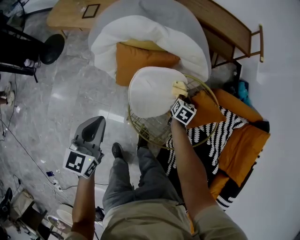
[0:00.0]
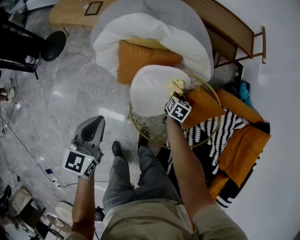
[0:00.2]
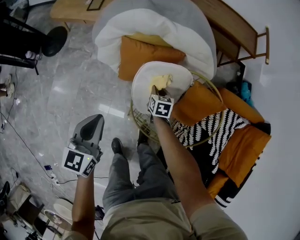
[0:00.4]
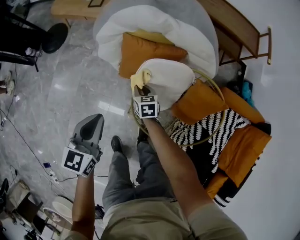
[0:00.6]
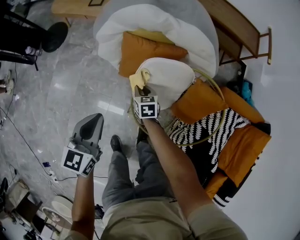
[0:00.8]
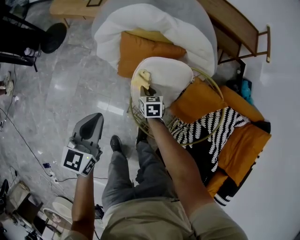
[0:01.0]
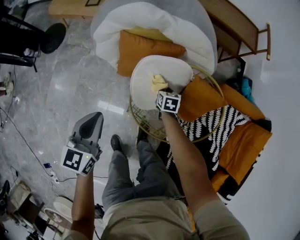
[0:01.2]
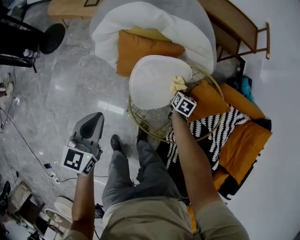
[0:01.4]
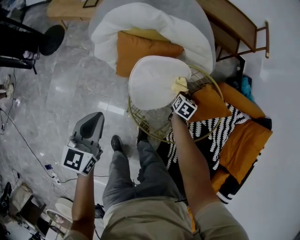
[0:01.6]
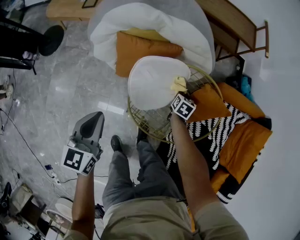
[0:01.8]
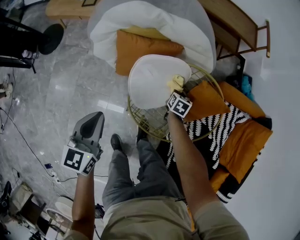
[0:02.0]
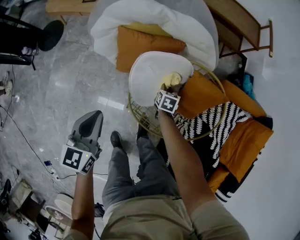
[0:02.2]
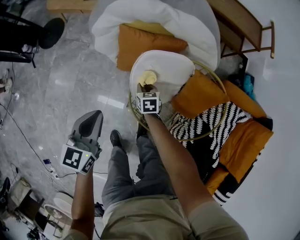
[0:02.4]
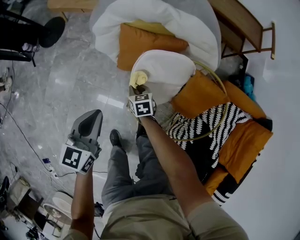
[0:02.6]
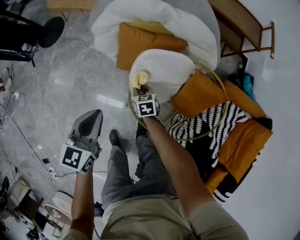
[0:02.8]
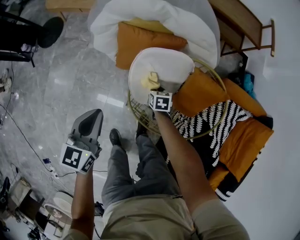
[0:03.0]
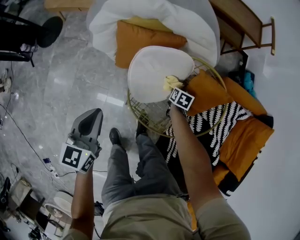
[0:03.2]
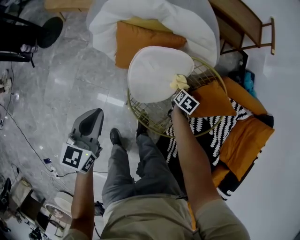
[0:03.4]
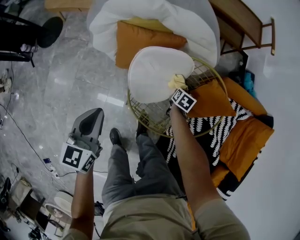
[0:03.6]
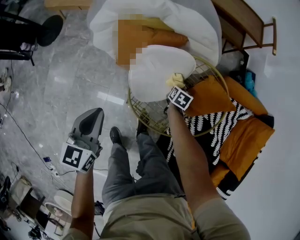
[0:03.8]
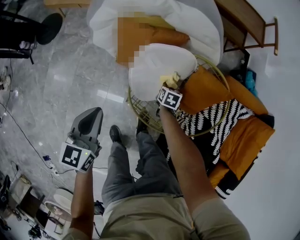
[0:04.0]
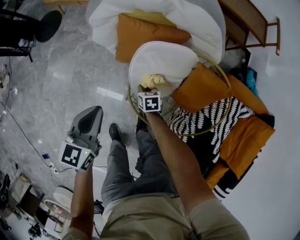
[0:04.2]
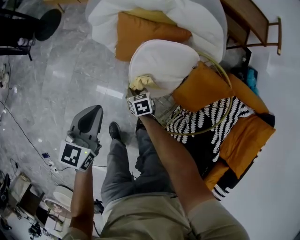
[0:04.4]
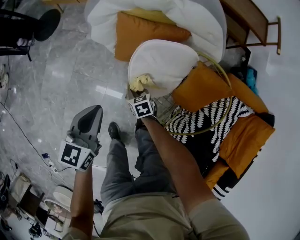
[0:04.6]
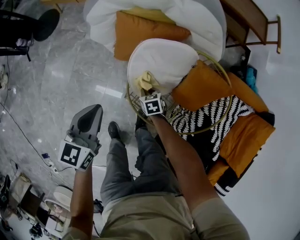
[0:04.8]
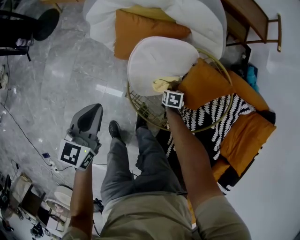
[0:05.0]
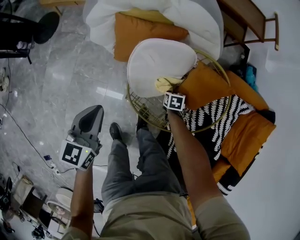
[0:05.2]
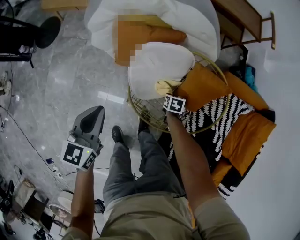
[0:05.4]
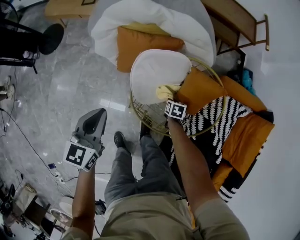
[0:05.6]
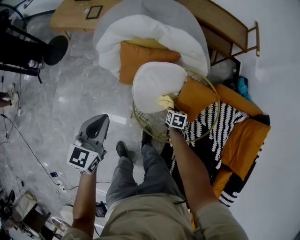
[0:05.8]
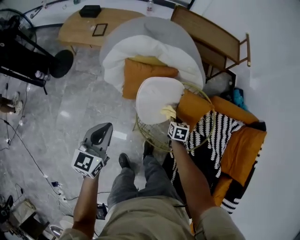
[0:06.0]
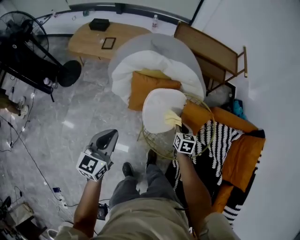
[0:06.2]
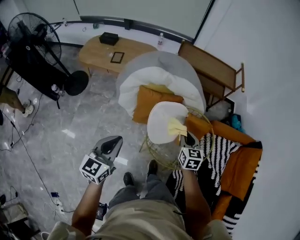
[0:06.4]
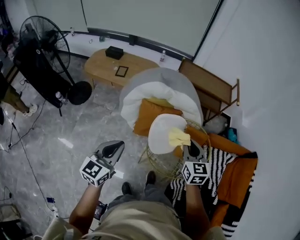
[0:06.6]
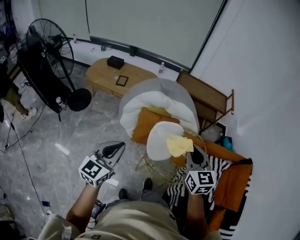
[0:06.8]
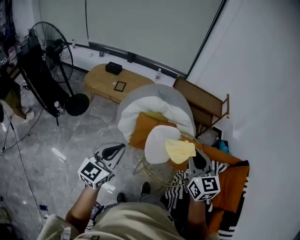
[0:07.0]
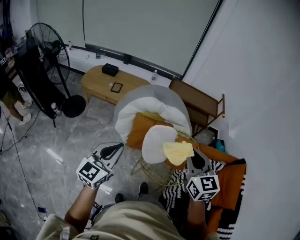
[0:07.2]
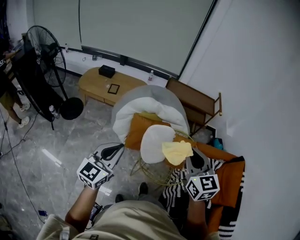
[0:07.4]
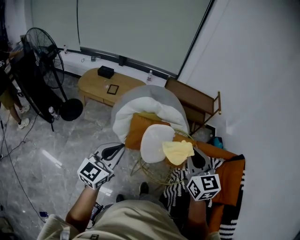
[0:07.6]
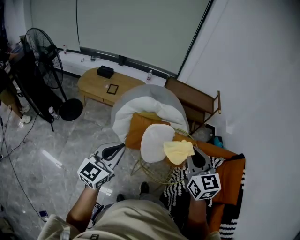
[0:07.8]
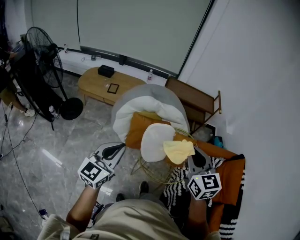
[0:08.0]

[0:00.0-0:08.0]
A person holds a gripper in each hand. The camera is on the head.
0:01.6 to 0:03.2: The right gripper goes some 5 cm downward.
0:03.2 to 0:04.8: The right gripper ends up roughly 20 cm from where it was, and changes its angle by approximately 40 degrees.
0:04.8 to 0:06.4: The right gripper shifts roughly 40 cm upward, and tilts its fingers approximately 30 degrees upward; the left gripper heads upward, covering about 25 cm.
0:06.4 to 0:08.0: The right gripper heads upward and backward, covering some 35 cm, and turns by some 20 degrees. Meanwhile the left gripper goes some 15 cm upward and backward.

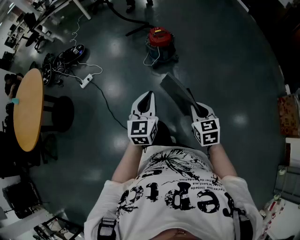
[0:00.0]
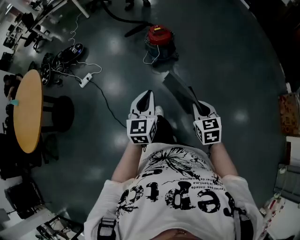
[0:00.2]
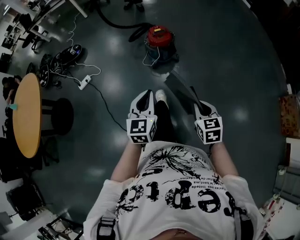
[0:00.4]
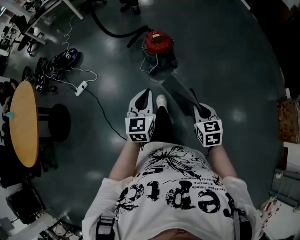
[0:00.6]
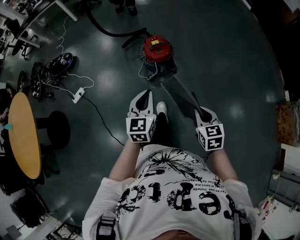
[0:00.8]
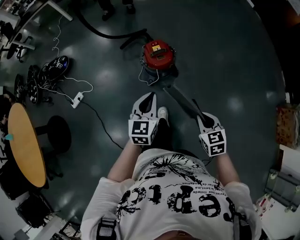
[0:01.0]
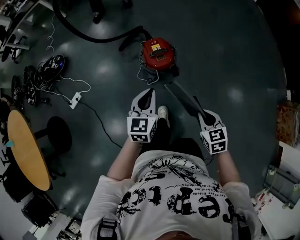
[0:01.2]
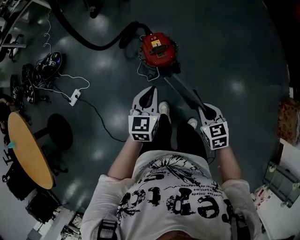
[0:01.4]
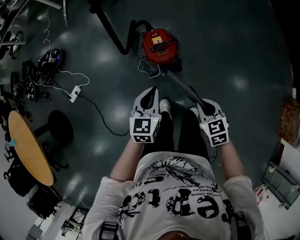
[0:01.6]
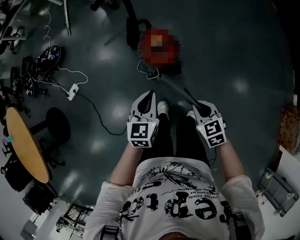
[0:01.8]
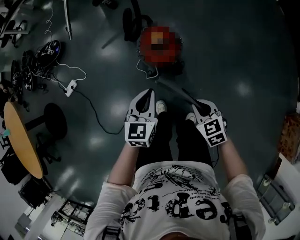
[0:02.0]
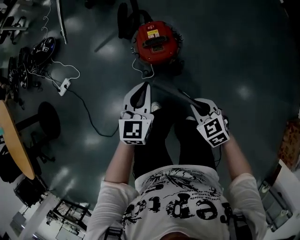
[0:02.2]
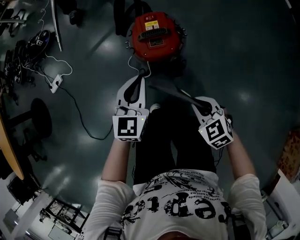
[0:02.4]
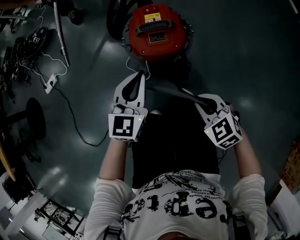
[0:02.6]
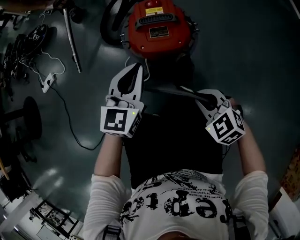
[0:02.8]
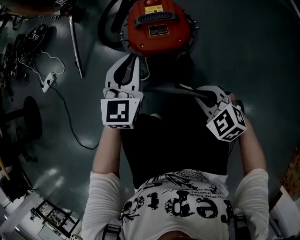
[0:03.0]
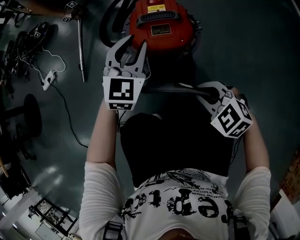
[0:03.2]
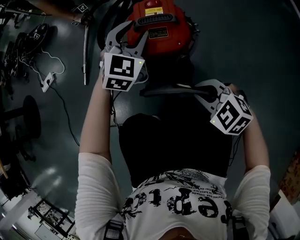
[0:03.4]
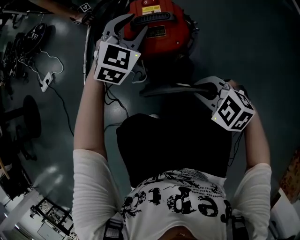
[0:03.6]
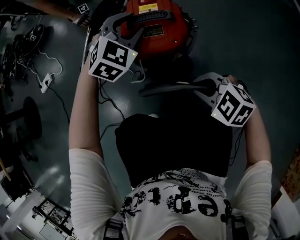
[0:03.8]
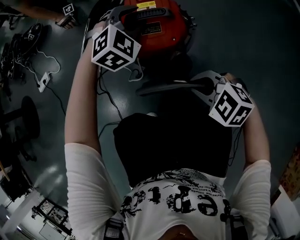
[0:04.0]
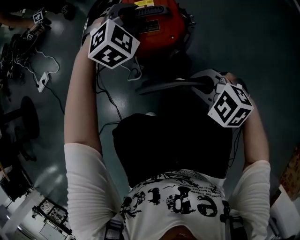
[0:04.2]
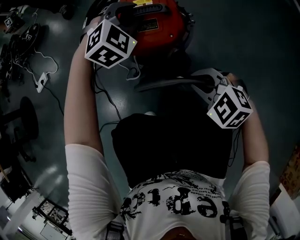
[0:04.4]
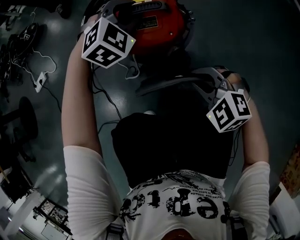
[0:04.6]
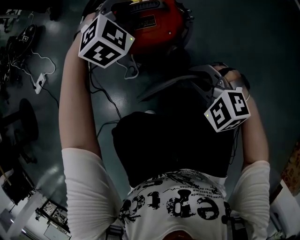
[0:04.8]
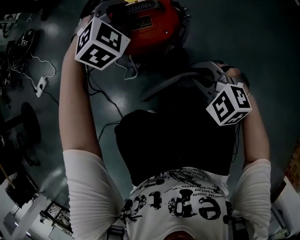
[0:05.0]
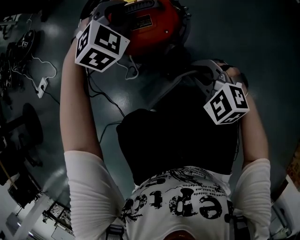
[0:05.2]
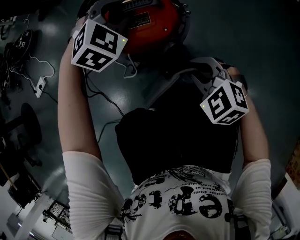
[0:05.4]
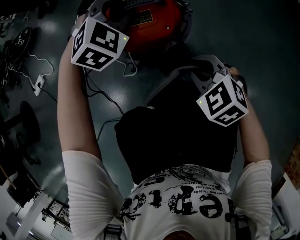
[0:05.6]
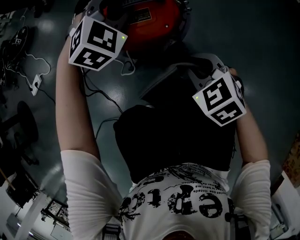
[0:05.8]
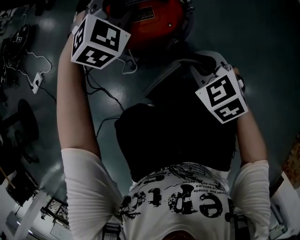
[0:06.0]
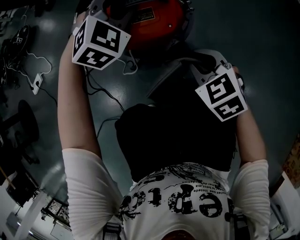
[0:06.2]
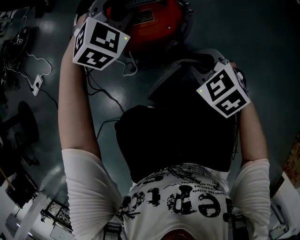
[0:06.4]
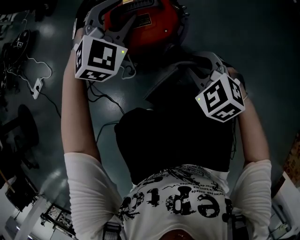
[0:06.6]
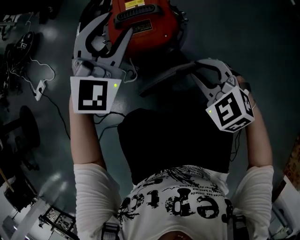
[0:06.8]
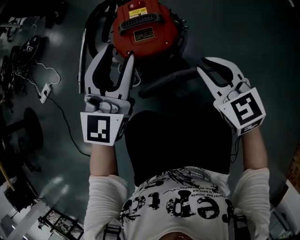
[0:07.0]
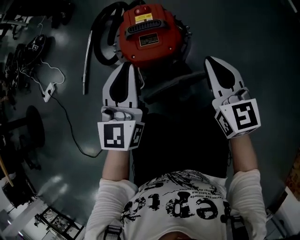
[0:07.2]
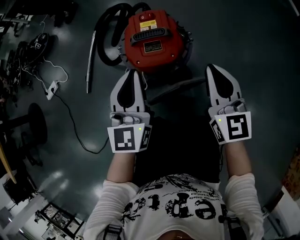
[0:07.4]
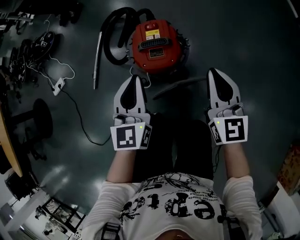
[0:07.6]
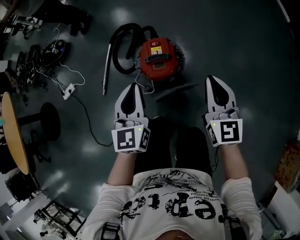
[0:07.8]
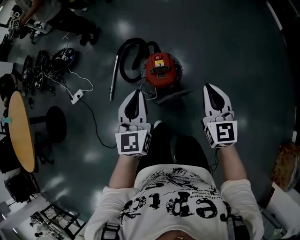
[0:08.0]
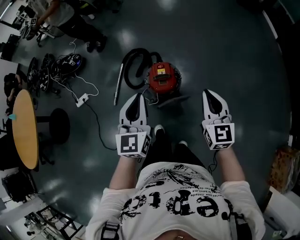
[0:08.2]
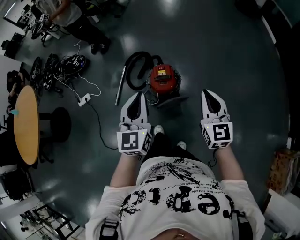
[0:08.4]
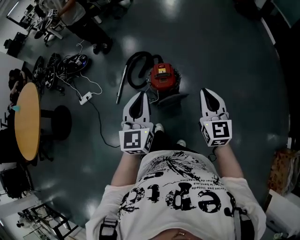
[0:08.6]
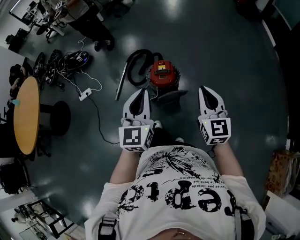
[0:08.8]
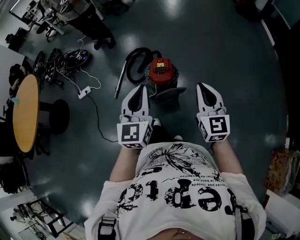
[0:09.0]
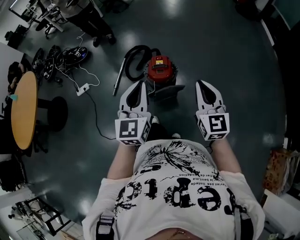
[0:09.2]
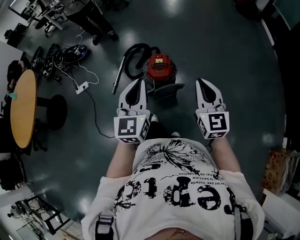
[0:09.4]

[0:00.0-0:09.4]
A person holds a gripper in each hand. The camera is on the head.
0:00.0 to 0:01.6: Both grippers are carried forward, roughly 50 cm.
0:01.6 to 0:03.2: The grippers both shift downward by about 35 cm. The right gripper rotates around the line of its fingers by approximately 50 degrees, counterclockwise from behind. The left gripper changes its angle by about 30 degrees, and opens up.
0:03.2 to 0:04.8: The left gripper heads forward and to the right, covering roughly 10 cm, and rotates roughly 40 degrees.
0:04.8 to 0:06.2: The right gripper rotates some 40 degrees.
0:06.2 to 0:07.8: The left gripper moves upward and backward, approximately 35 cm, rolls counterclockwise, seen from behind, by about 50 degrees, and closes up; the right gripper heads upward, covering approximately 40 cm, and points its fingers some 40 degrees further upward.
0:07.8 to 0:09.4: The two grippers go about 35 cm upward and backward.

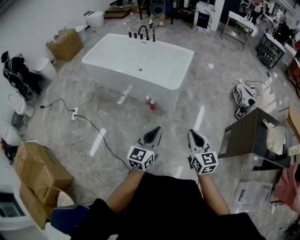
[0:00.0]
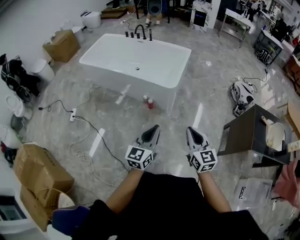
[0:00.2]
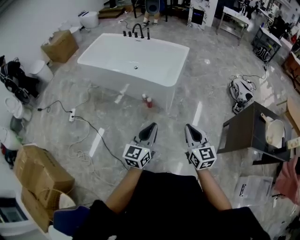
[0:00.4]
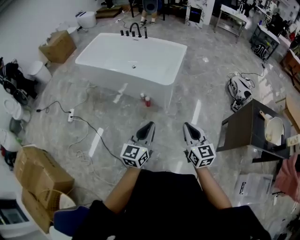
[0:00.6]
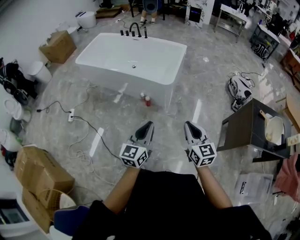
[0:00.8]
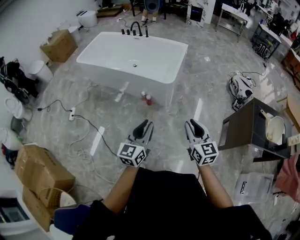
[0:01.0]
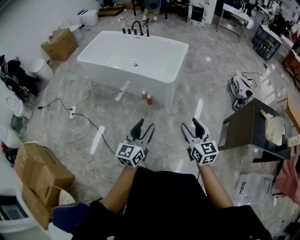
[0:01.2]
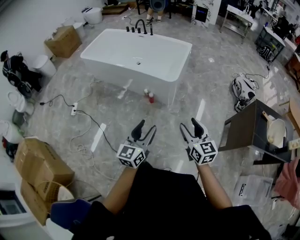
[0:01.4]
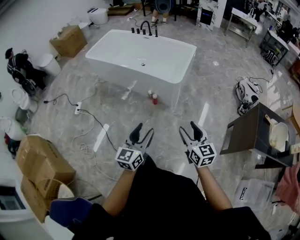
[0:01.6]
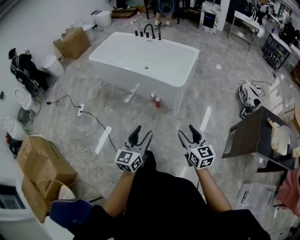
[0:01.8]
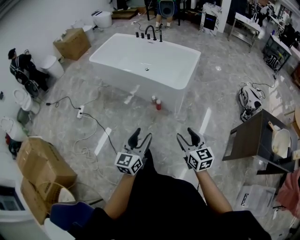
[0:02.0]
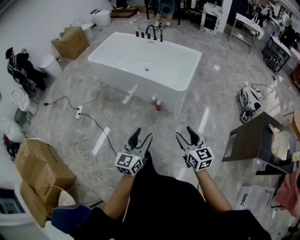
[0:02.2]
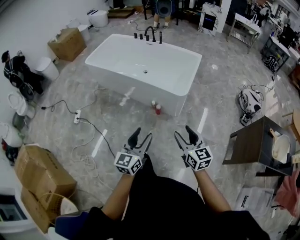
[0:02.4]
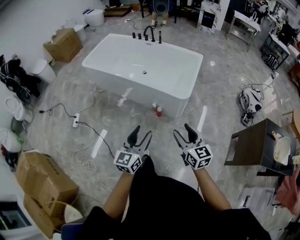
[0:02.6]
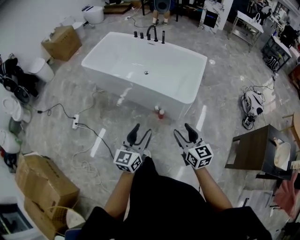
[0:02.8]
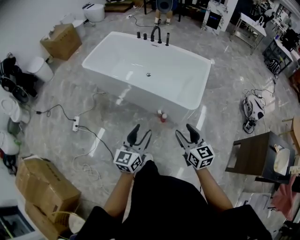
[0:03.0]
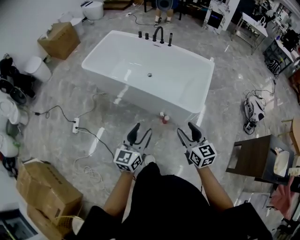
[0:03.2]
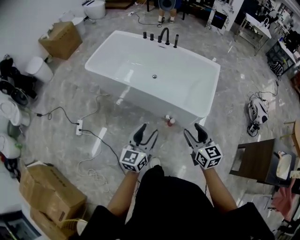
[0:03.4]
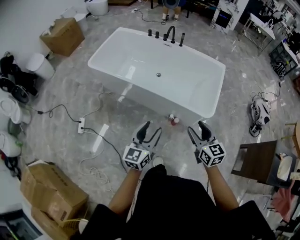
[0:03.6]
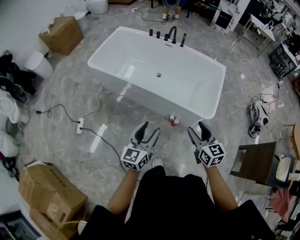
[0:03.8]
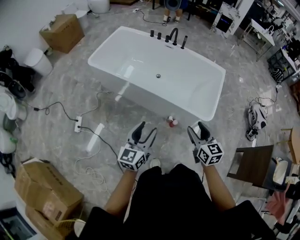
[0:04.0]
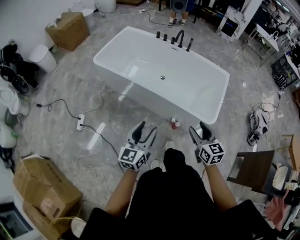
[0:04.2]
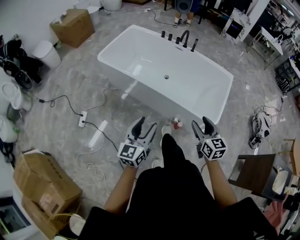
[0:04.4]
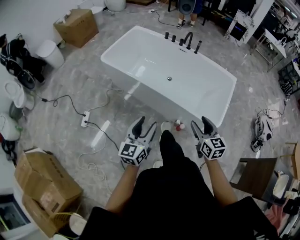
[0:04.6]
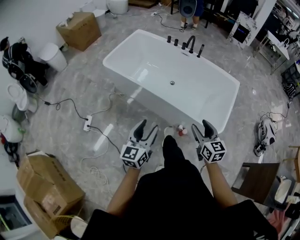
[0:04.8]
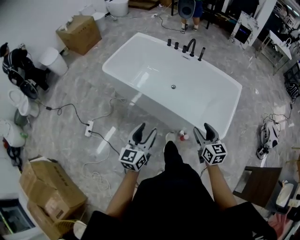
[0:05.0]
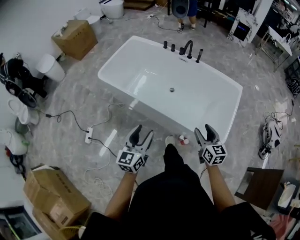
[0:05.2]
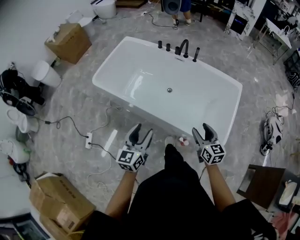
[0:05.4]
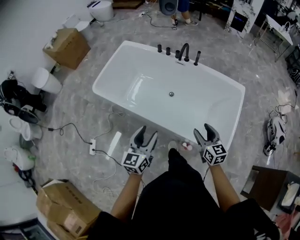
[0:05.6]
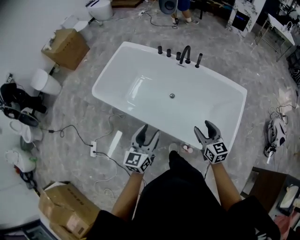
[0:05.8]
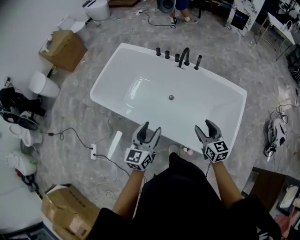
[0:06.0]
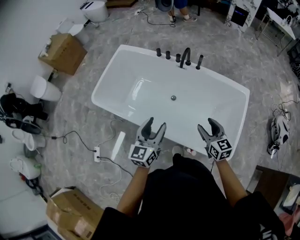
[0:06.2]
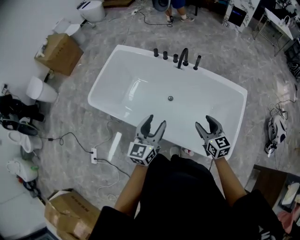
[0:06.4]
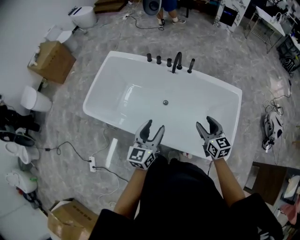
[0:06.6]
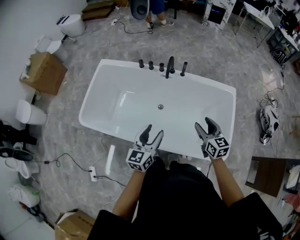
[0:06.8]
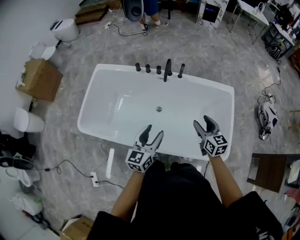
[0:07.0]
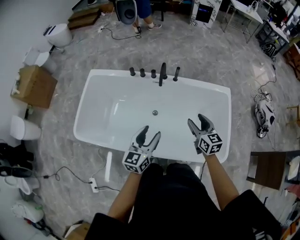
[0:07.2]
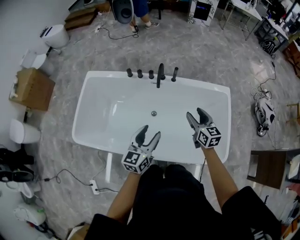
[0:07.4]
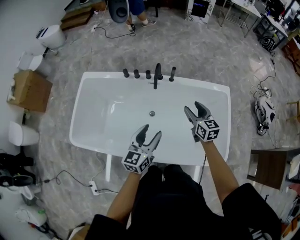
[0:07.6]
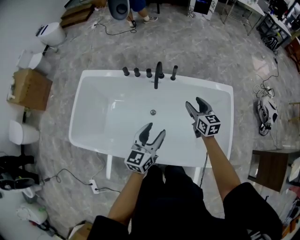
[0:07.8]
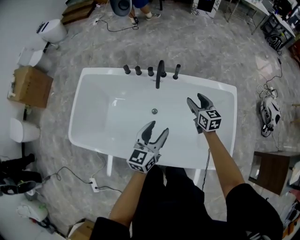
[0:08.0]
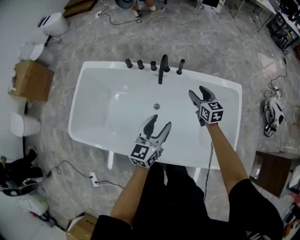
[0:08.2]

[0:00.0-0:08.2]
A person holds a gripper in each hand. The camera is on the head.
0:00.0 to 0:01.6: The right gripper opens, while the left gripper changes place by about 5 cm, and opens its fingers.
0:01.6 to 0:03.2: Both grippers are carried forward and to the left, about 40 cm.
0:03.2 to 0:05.0: The right gripper travels forward by some 20 cm. The left gripper heads forward and to the left, covering about 20 cm.
0:05.0 to 0:06.6: The grippers both shift forward by approximately 35 cm.
0:06.6 to 0:08.2: The left gripper heads forward, covering roughly 20 cm. Meanwhile the right gripper is displaced forward and downward by some 30 cm.
